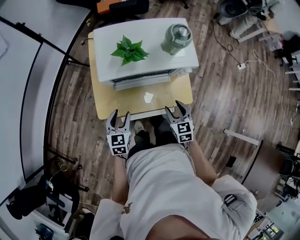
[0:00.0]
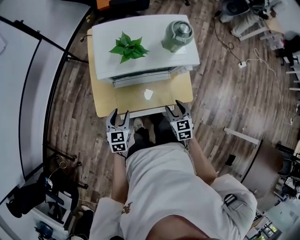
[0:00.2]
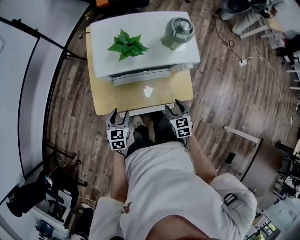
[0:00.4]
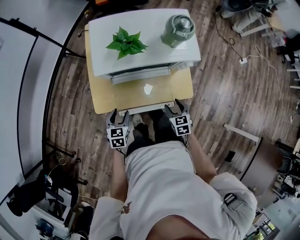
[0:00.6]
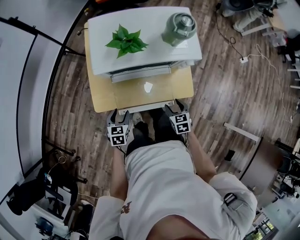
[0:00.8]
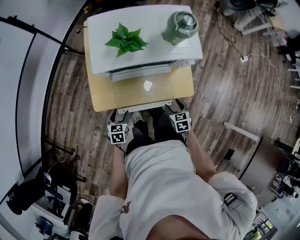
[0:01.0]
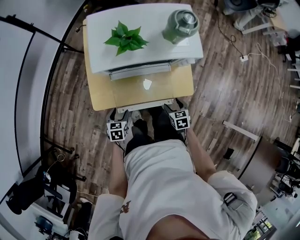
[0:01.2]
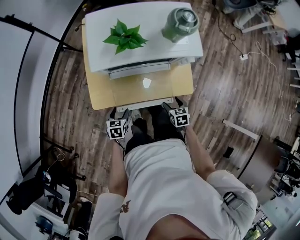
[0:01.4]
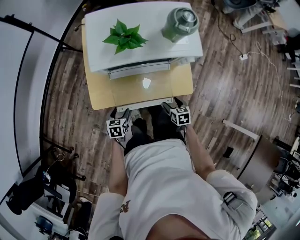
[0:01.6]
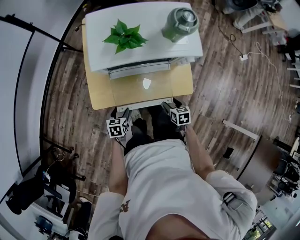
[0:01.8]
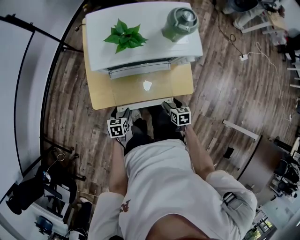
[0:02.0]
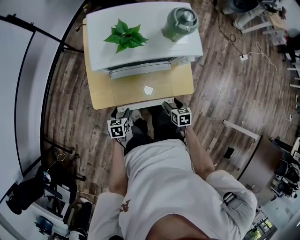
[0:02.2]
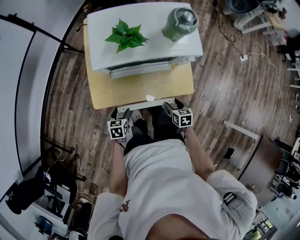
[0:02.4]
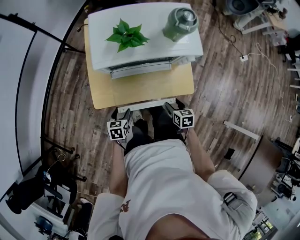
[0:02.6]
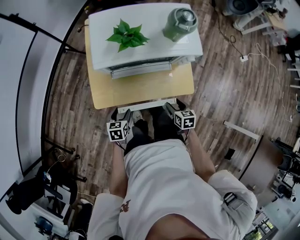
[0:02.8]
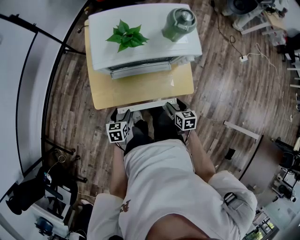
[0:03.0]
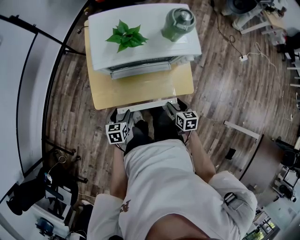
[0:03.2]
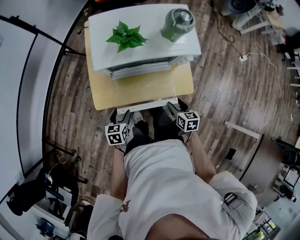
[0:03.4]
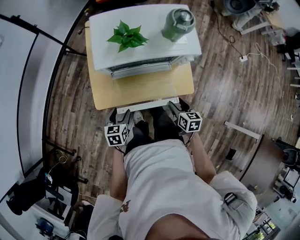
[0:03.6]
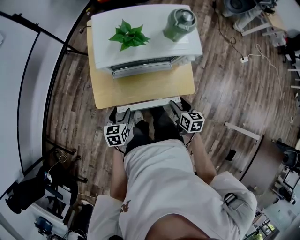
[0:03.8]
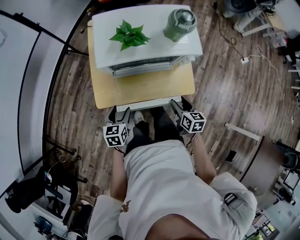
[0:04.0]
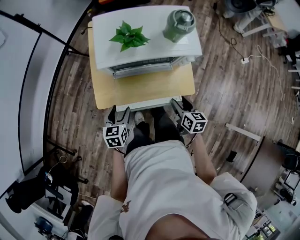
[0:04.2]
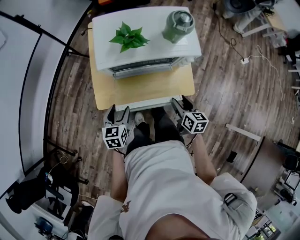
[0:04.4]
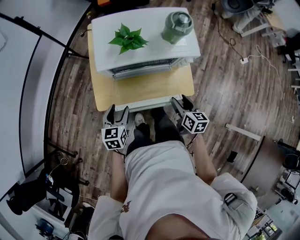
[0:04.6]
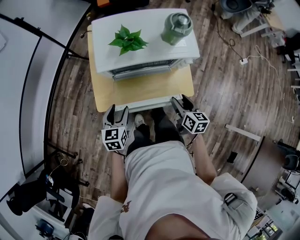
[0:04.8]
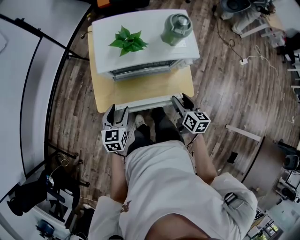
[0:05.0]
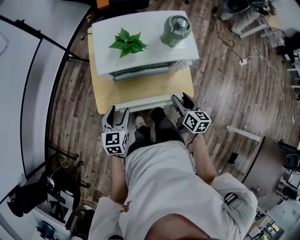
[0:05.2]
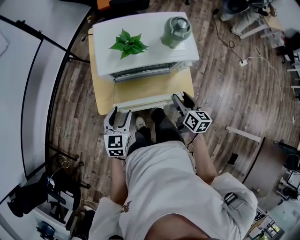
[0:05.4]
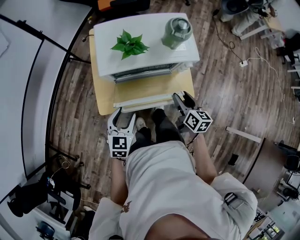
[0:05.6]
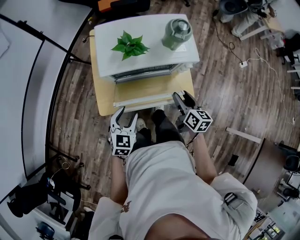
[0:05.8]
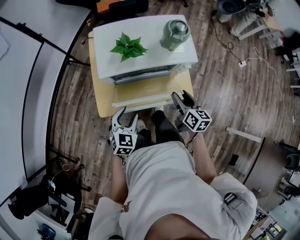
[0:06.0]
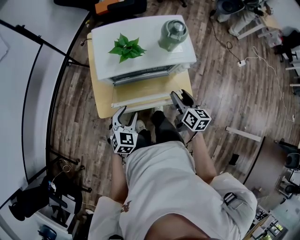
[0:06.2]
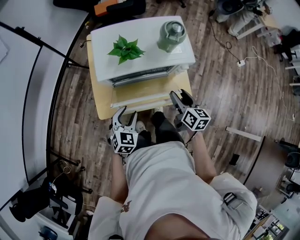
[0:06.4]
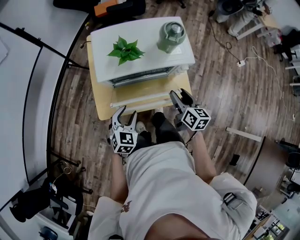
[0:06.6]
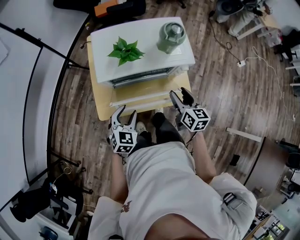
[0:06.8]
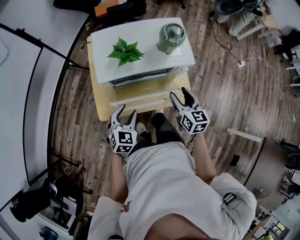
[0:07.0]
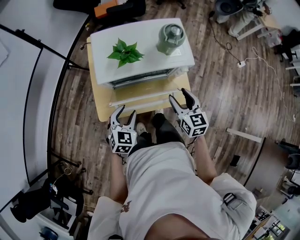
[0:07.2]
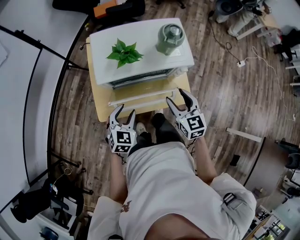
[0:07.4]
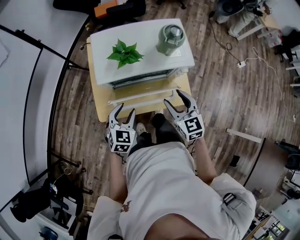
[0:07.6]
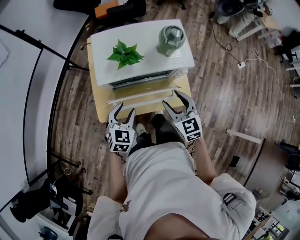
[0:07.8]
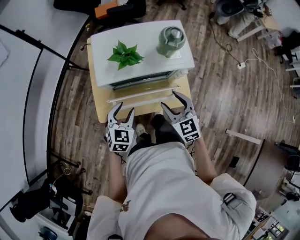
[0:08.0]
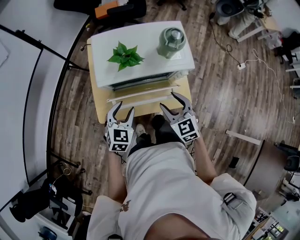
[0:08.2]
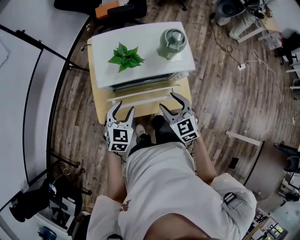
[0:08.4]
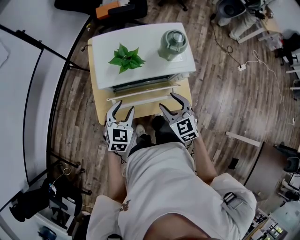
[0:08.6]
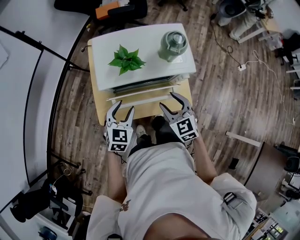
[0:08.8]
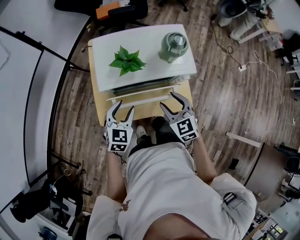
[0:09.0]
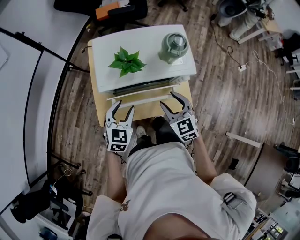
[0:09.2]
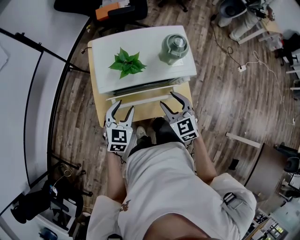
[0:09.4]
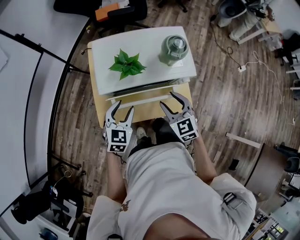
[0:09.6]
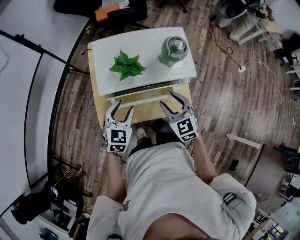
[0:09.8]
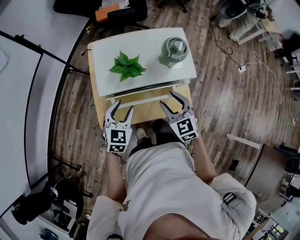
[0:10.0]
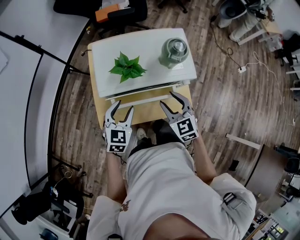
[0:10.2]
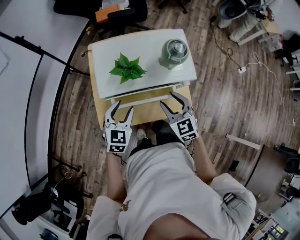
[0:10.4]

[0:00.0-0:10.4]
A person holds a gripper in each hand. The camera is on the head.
0:00.0 to 0:01.4: The grippers both shift downward by some 15 cm. The right gripper changes its angle by about 20 degrees. The left gripper changes its angle by approximately 30 degrees.
0:01.4 to 0:03.0: The right gripper heads upward, covering some 5 cm.
0:03.0 to 0:04.4: The grippers both shift upward by roughly 10 cm.
0:04.4 to 0:06.0: The left gripper shifts by approximately 5 cm, and rotates approximately 30 degrees. Meanwhile the right gripper travels upward and forward by some 10 cm.
0:06.0 to 0:07.4: The right gripper travels upward by about 5 cm, and swivels some 30 degrees.
0:07.4 to 0:09.0: The left gripper moves about 5 cm.
0:09.0 to 0:10.4: The grippers make only small movements.

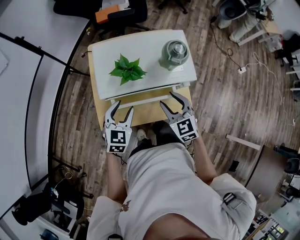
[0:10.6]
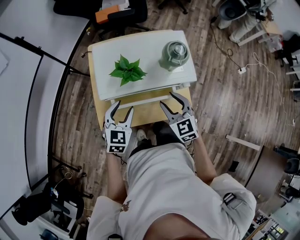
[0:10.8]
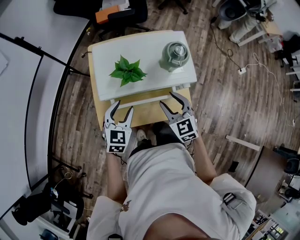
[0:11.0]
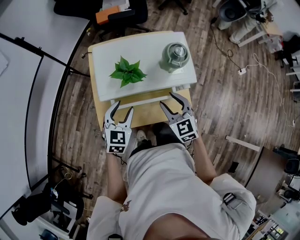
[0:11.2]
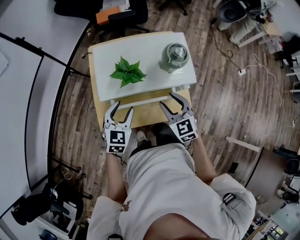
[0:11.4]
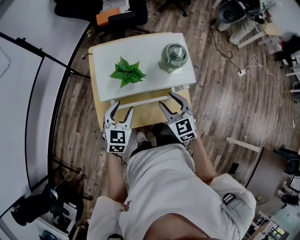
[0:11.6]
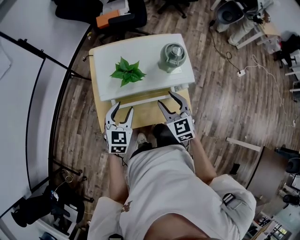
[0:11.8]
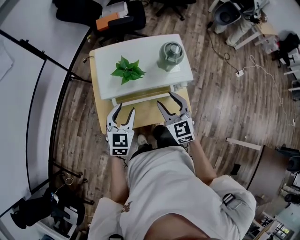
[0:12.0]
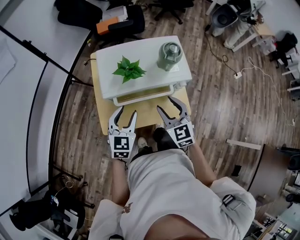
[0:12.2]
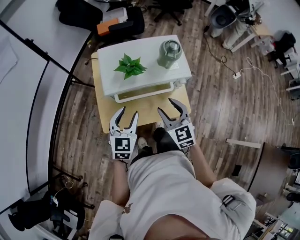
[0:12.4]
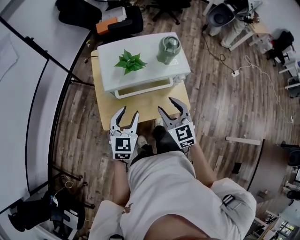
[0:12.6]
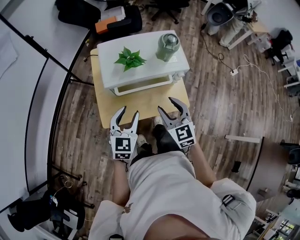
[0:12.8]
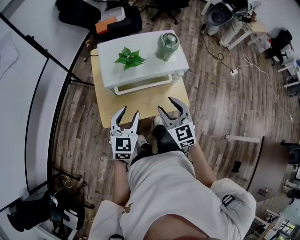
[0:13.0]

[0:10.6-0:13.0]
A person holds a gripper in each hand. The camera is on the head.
0:10.6 to 0:11.8: The grippers move only a little.
0:11.8 to 0:13.0: The two grippers go about 10 cm backward.

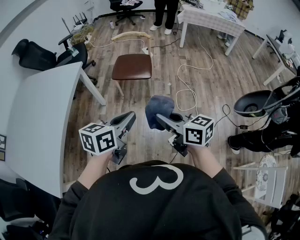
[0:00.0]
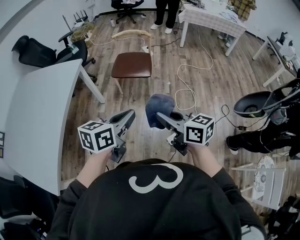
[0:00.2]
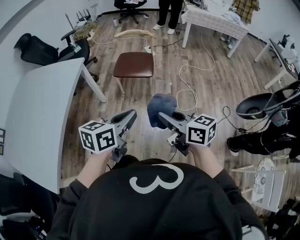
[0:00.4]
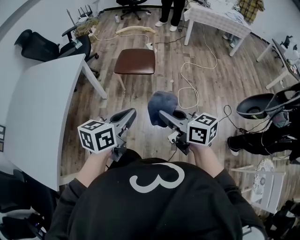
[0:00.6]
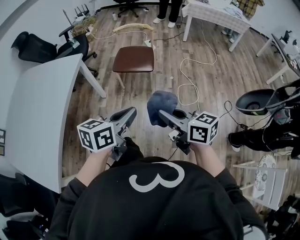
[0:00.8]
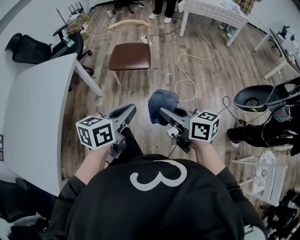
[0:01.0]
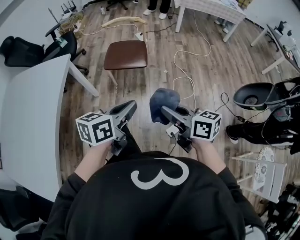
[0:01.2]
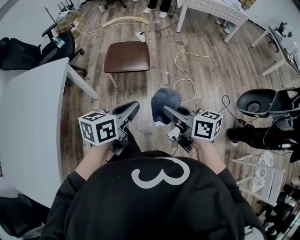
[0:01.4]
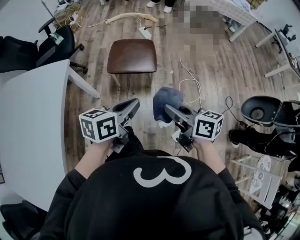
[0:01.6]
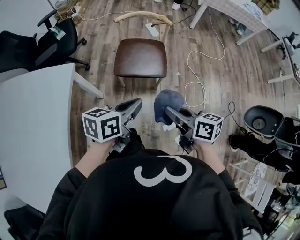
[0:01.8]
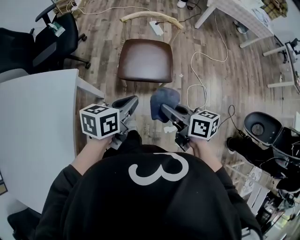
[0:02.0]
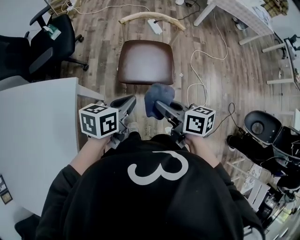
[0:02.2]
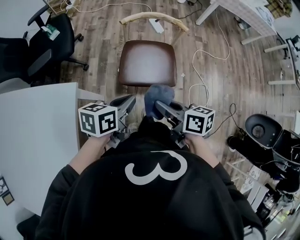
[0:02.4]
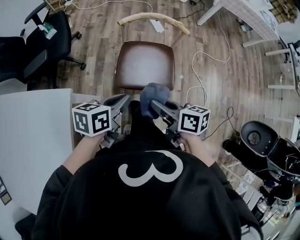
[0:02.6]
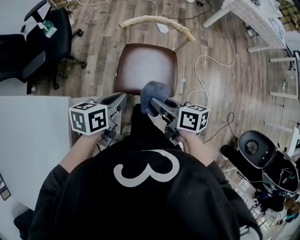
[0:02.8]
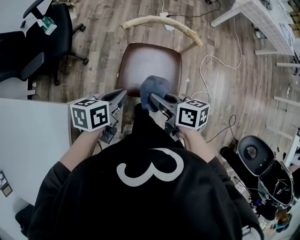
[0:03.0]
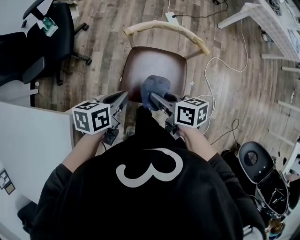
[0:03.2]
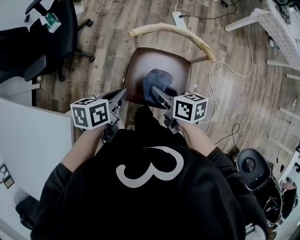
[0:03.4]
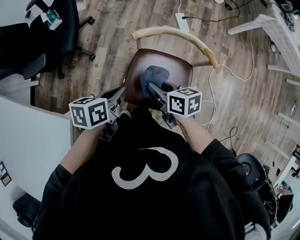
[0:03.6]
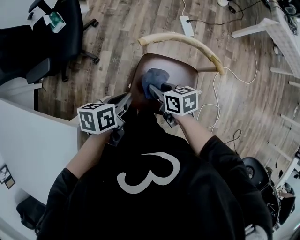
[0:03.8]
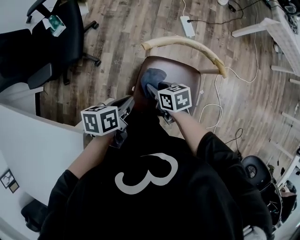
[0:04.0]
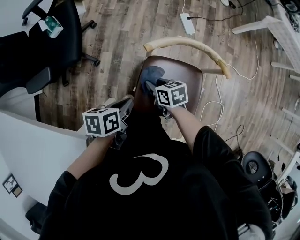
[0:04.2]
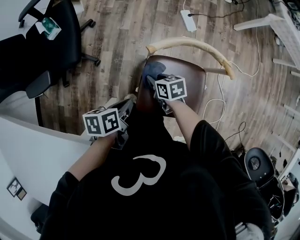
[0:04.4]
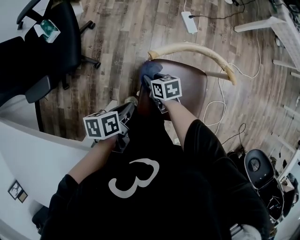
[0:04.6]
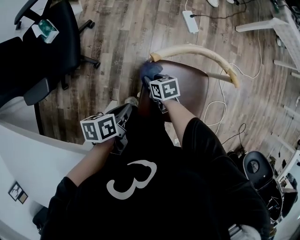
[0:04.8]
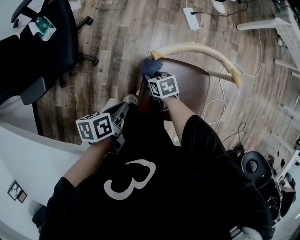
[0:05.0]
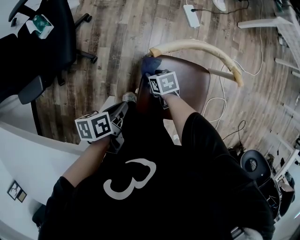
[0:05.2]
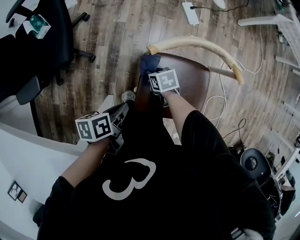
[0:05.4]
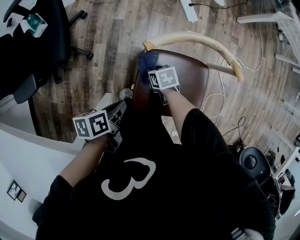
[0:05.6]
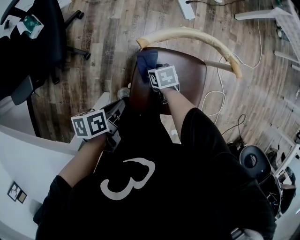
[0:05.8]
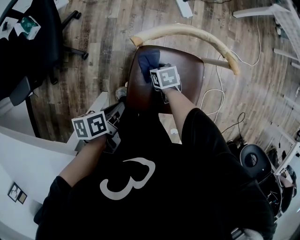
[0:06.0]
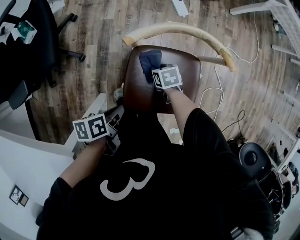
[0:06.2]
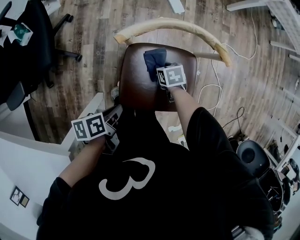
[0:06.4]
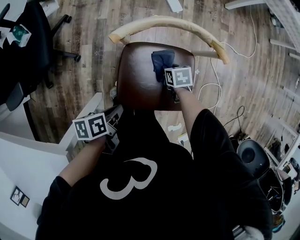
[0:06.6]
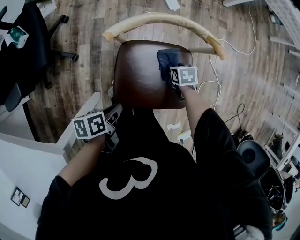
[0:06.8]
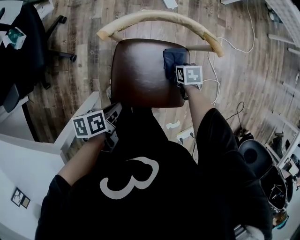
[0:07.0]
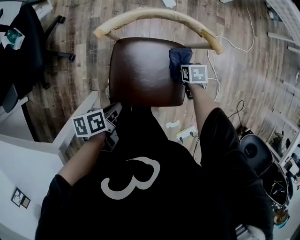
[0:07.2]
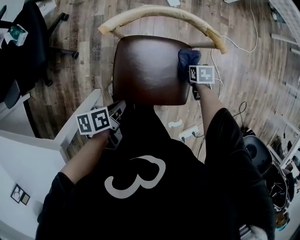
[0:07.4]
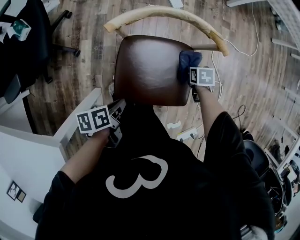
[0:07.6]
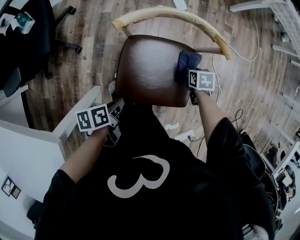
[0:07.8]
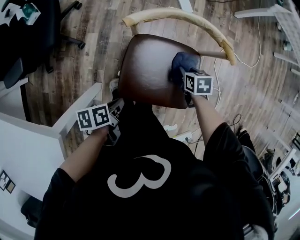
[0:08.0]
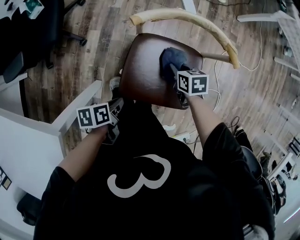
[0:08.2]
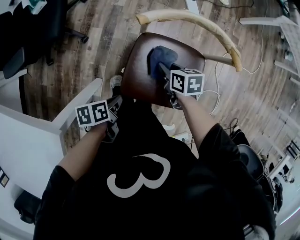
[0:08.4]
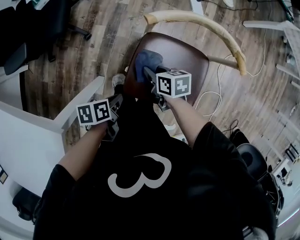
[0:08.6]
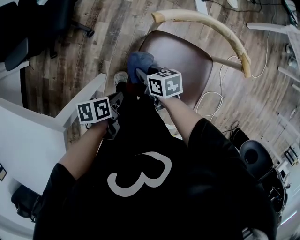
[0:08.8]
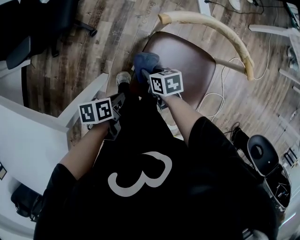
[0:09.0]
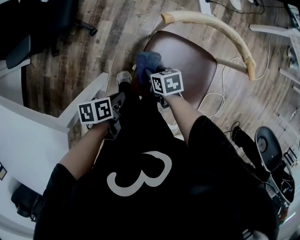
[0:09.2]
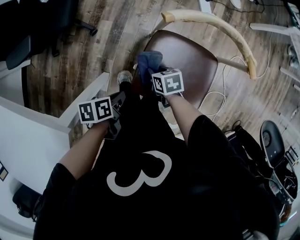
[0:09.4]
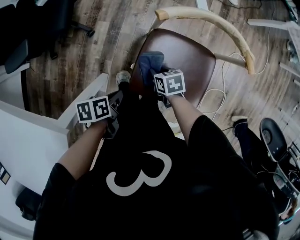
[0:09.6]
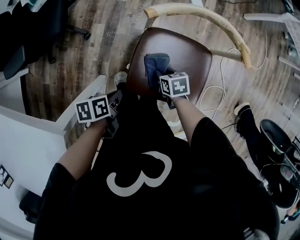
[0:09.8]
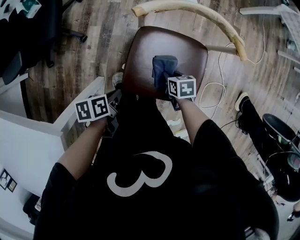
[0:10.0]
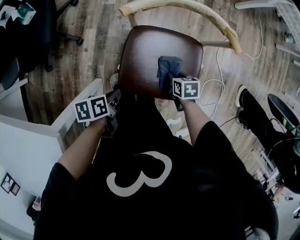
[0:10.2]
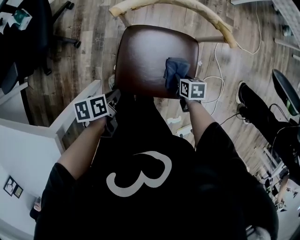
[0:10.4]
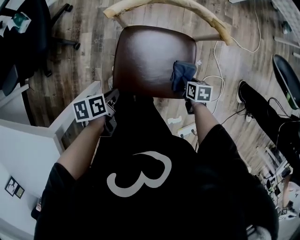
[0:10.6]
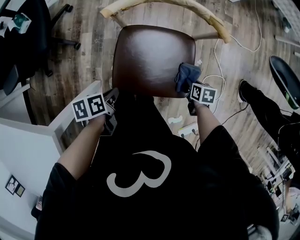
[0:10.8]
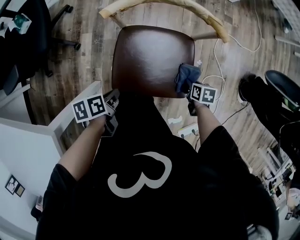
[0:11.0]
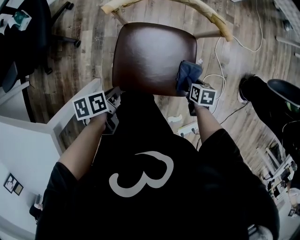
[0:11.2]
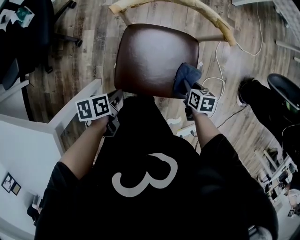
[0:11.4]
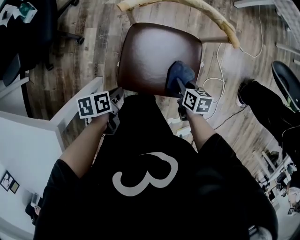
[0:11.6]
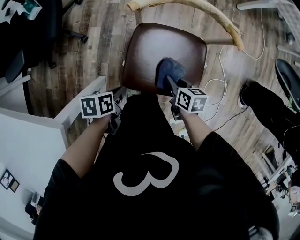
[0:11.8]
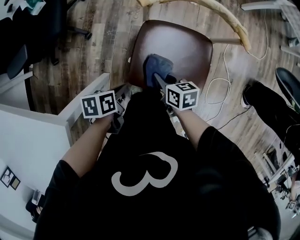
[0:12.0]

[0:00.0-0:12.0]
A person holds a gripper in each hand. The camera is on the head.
0:00.0 to 0:01.6: The right gripper shifts by approximately 20 cm.
0:01.6 to 0:03.0: The right gripper shifts by roughly 40 cm.
0:03.0 to 0:04.4: The right gripper changes place by roughly 30 cm, and rotates approximately 20 degrees.
0:04.4 to 0:06.0: The right gripper heads downward, covering approximately 10 cm.
0:06.0 to 0:07.6: The right gripper changes place by roughly 25 cm.
0:07.6 to 0:09.0: The right gripper changes place by some 35 cm, and swivels roughly 40 degrees.
0:09.0 to 0:10.4: The right gripper shifts by about 25 cm, and swivels roughly 30 degrees.
0:10.4 to 0:12.0: The right gripper shifts by roughly 20 cm, and swivels about 20 degrees.
